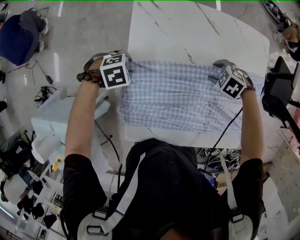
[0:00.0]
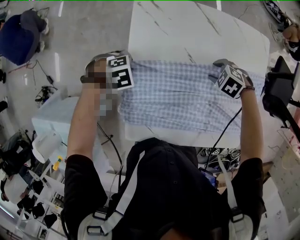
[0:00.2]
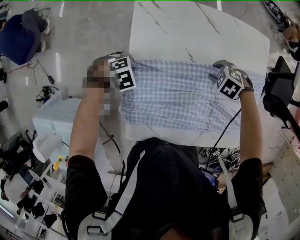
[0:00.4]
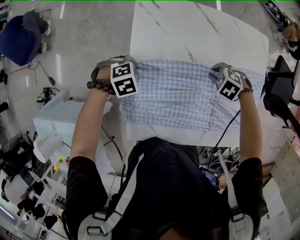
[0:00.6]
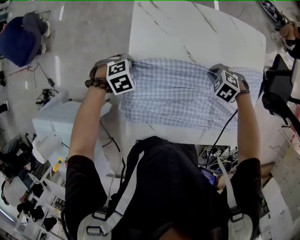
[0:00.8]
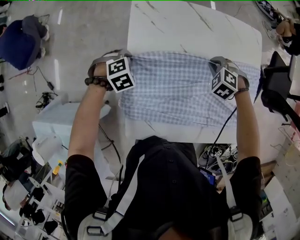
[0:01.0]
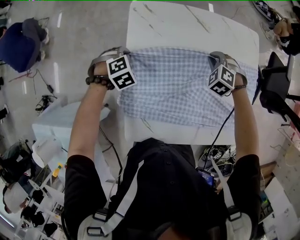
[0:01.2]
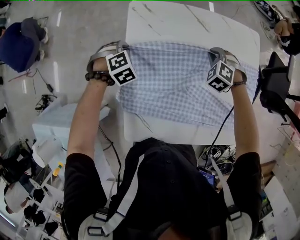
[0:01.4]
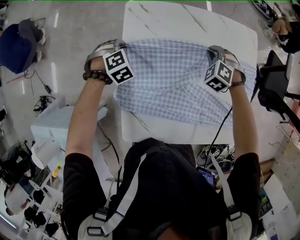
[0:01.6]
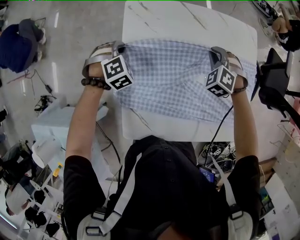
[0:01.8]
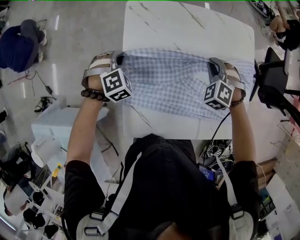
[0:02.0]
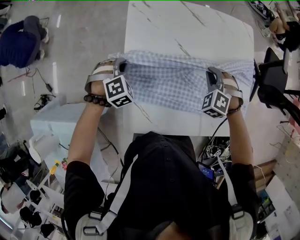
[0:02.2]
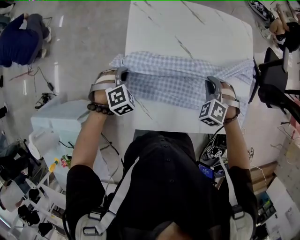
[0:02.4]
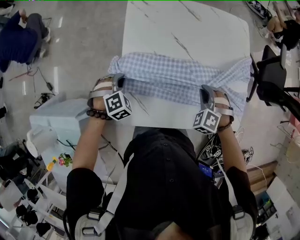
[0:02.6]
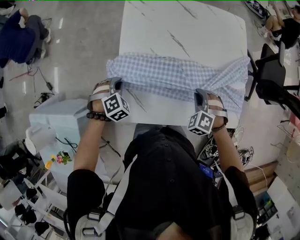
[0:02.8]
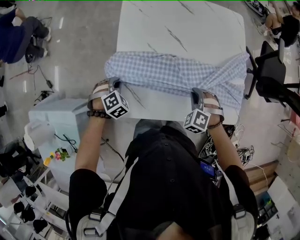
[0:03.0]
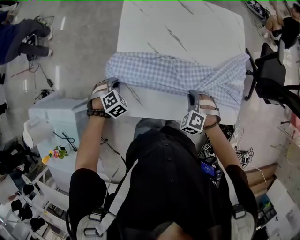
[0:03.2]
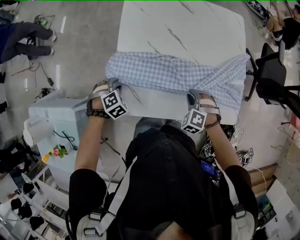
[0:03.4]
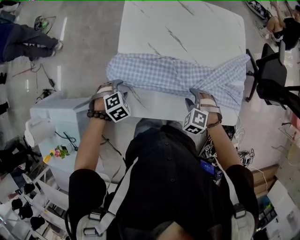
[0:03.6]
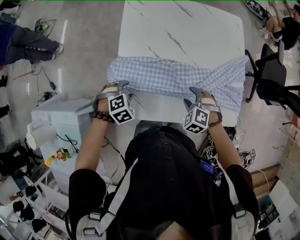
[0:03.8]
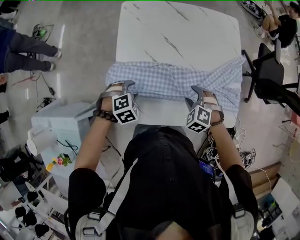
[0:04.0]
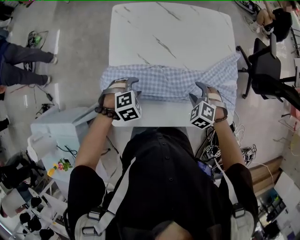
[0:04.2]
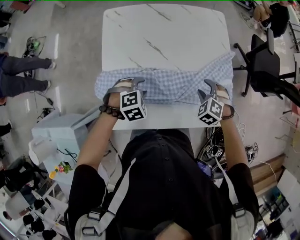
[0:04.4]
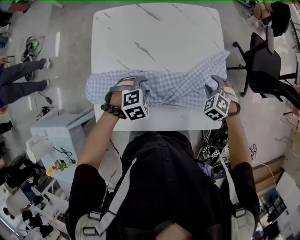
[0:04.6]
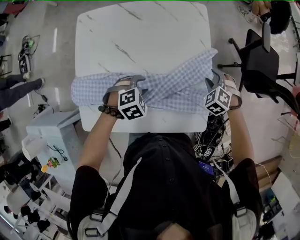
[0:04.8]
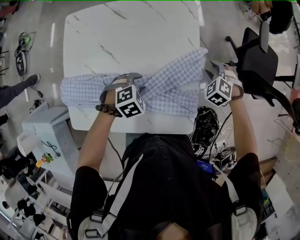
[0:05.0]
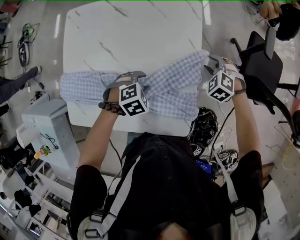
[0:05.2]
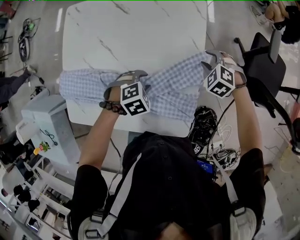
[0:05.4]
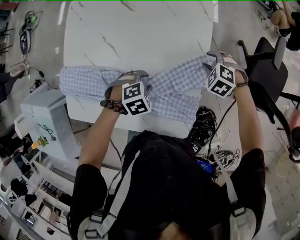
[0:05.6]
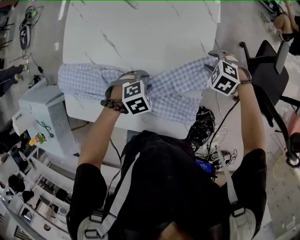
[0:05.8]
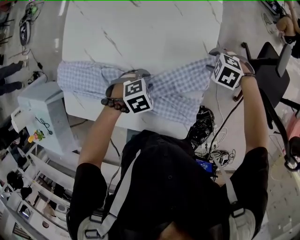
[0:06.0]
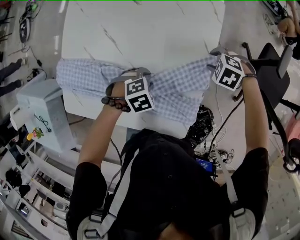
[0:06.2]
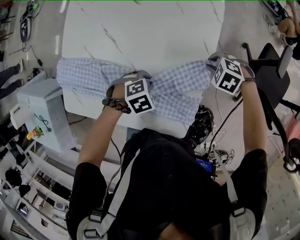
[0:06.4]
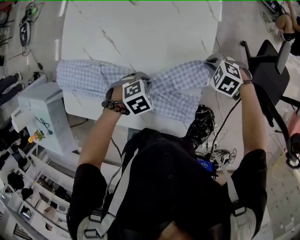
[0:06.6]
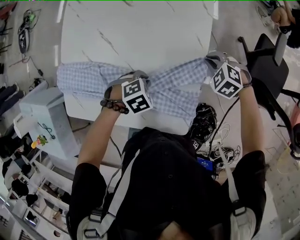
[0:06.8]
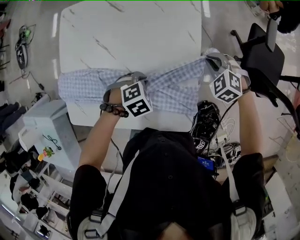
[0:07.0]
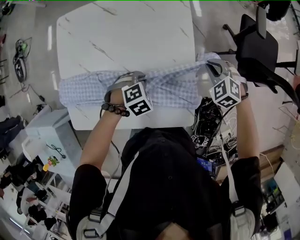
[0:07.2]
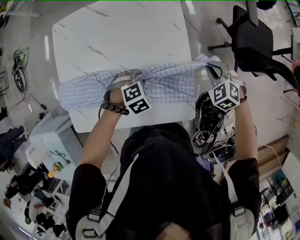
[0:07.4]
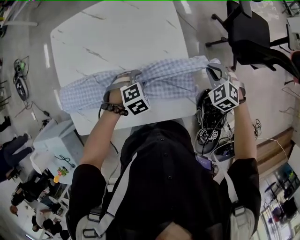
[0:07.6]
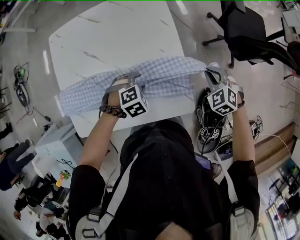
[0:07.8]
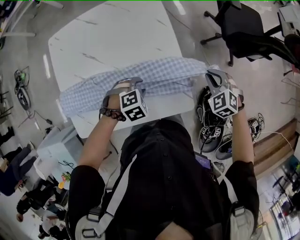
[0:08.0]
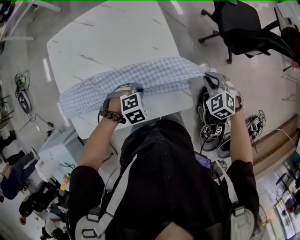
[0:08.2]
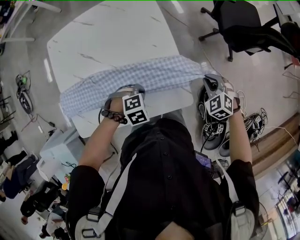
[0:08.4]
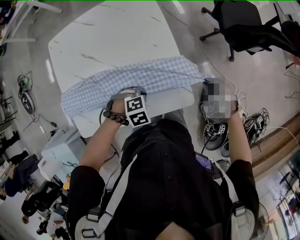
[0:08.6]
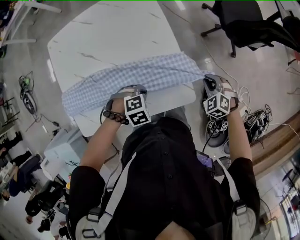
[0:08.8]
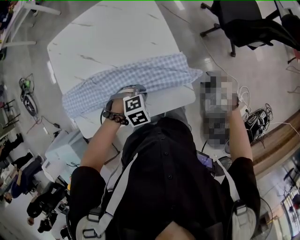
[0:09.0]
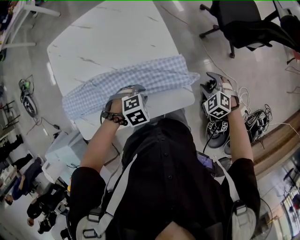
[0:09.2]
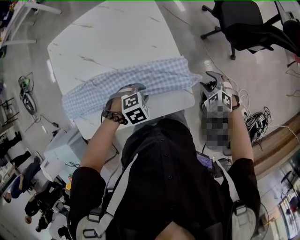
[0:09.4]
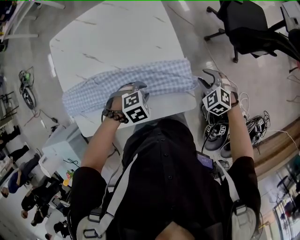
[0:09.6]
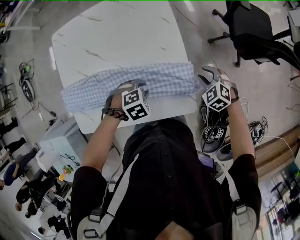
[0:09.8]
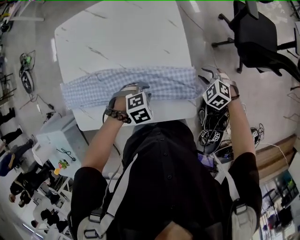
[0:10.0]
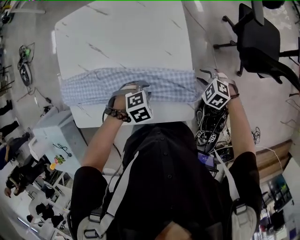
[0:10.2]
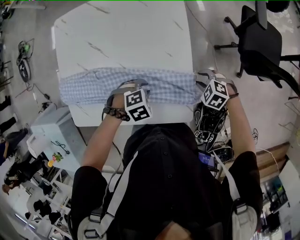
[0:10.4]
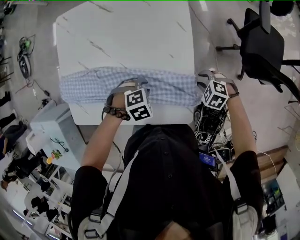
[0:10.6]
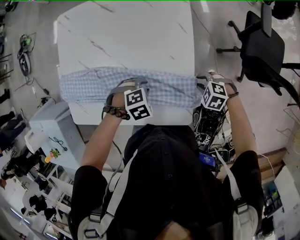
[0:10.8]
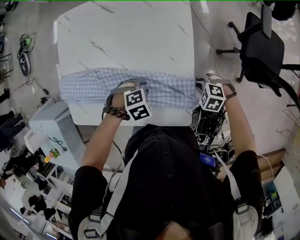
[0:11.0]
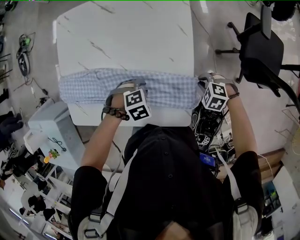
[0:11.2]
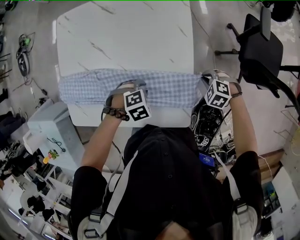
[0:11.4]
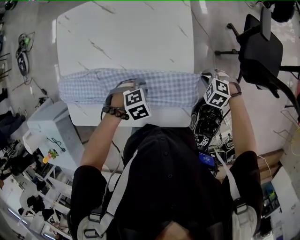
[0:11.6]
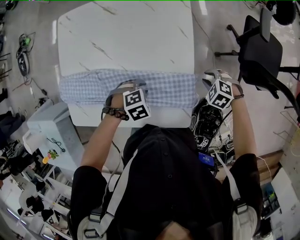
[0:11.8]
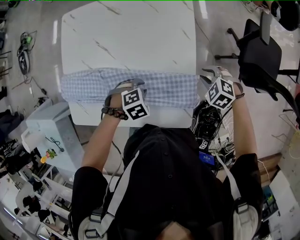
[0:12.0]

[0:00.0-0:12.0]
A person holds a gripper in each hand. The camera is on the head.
0:00.0 to 0:01.6: The left gripper changes place by some 10 cm, and swivels roughly 30 degrees, while the right gripper shifts by approximately 10 cm, turns by roughly 40 degrees, and closes.
0:01.6 to 0:03.0: The two grippers go approximately 30 cm backward.
0:03.0 to 0:04.4: The left gripper shifts by some 20 cm, and turns by roughly 20 degrees. The right gripper shifts by approximately 15 cm, and opens its fingers.
0:04.4 to 0:06.0: The left gripper moves roughly 25 cm, and changes its angle by approximately 30 degrees. Meanwhile the right gripper ends up about 25 cm from where it was, and rotates roughly 40 degrees.
0:06.0 to 0:07.6: The right gripper ends up roughly 20 cm from where it was, swivels approximately 50 degrees, and closes. Meanwhile the left gripper shifts by approximately 5 cm, and rotates roughly 20 degrees.
0:07.6 to 0:09.0: The right gripper changes place by approximately 15 cm, and opens its fingers. The left gripper moves about 10 cm.
0:09.0 to 0:10.4: The left gripper moves approximately 5 cm. The right gripper ends up some 15 cm from where it was, and turns by about 30 degrees.
0:10.4 to 0:12.0: The right gripper shifts by roughly 10 cm.

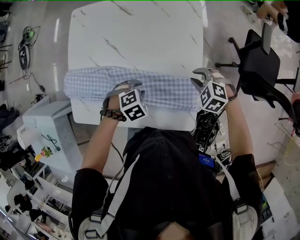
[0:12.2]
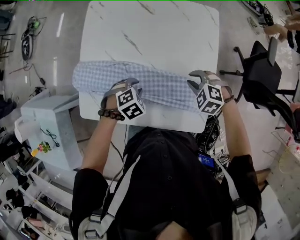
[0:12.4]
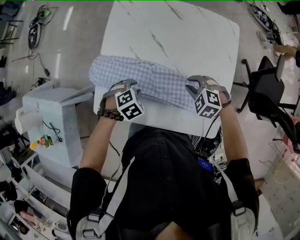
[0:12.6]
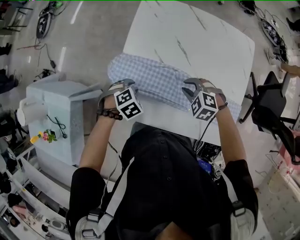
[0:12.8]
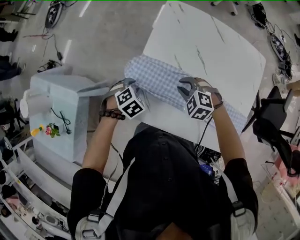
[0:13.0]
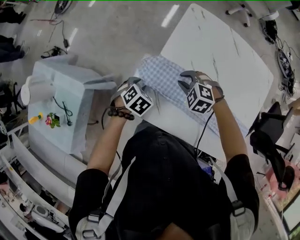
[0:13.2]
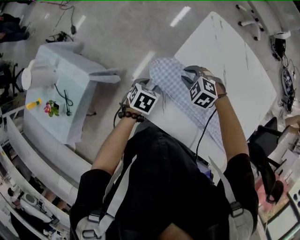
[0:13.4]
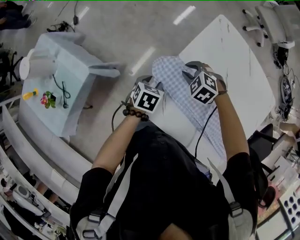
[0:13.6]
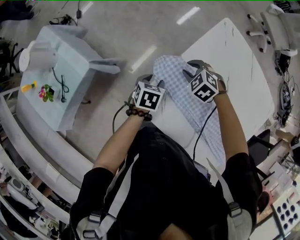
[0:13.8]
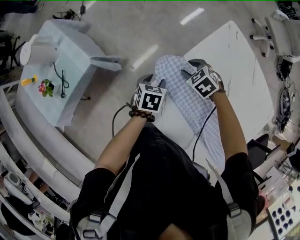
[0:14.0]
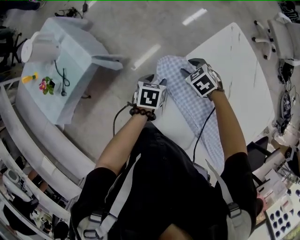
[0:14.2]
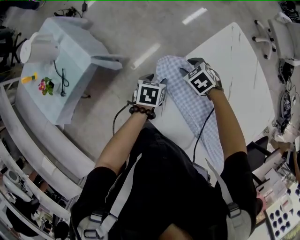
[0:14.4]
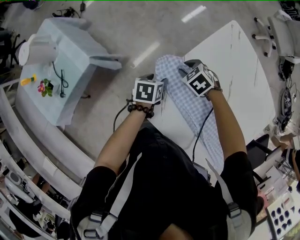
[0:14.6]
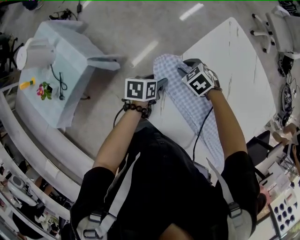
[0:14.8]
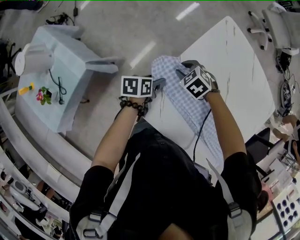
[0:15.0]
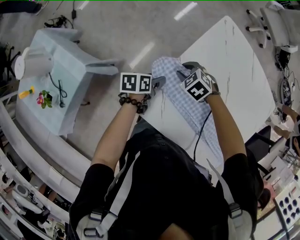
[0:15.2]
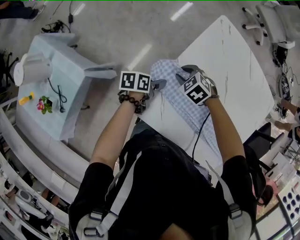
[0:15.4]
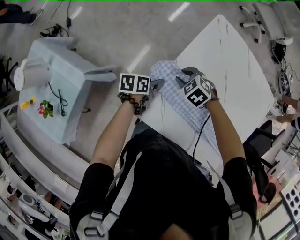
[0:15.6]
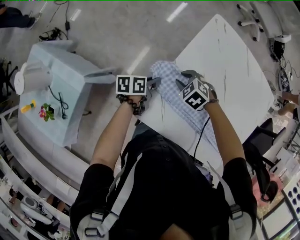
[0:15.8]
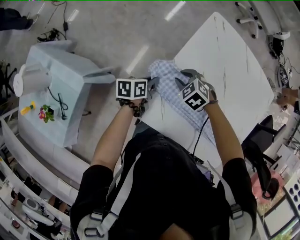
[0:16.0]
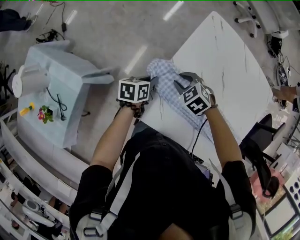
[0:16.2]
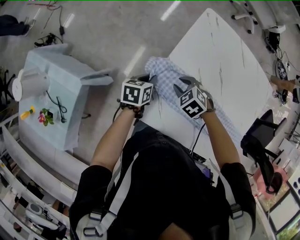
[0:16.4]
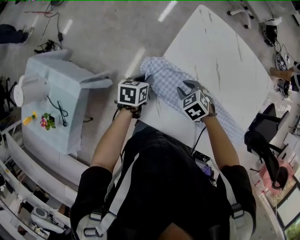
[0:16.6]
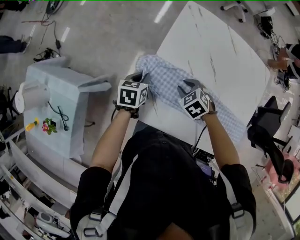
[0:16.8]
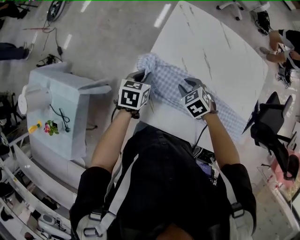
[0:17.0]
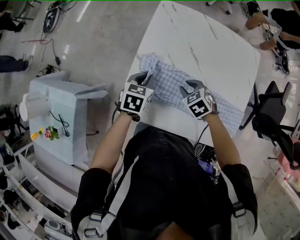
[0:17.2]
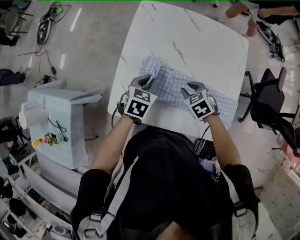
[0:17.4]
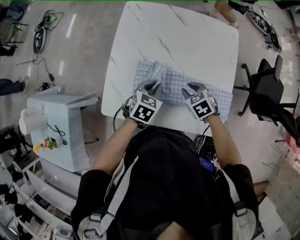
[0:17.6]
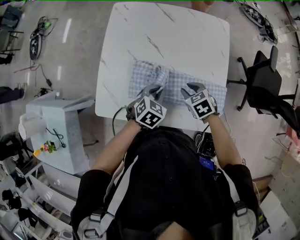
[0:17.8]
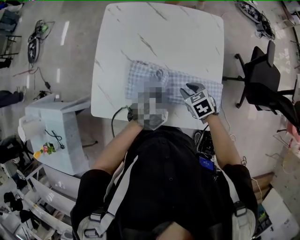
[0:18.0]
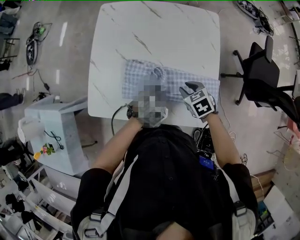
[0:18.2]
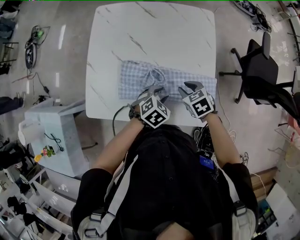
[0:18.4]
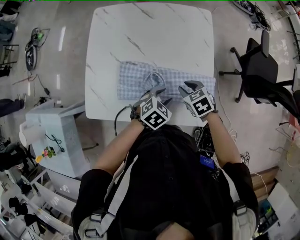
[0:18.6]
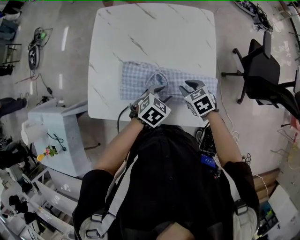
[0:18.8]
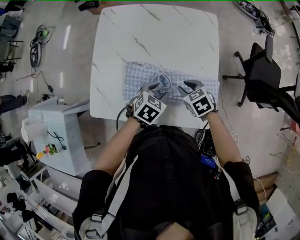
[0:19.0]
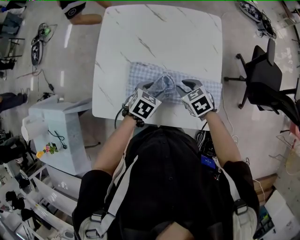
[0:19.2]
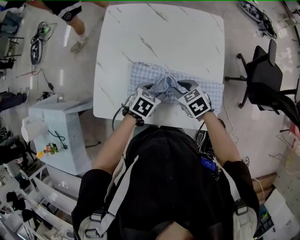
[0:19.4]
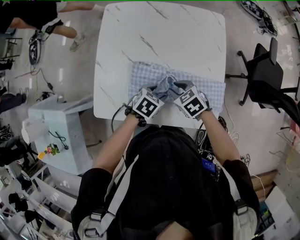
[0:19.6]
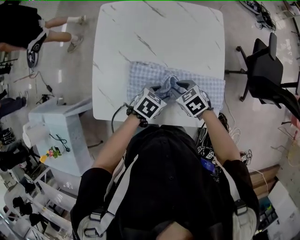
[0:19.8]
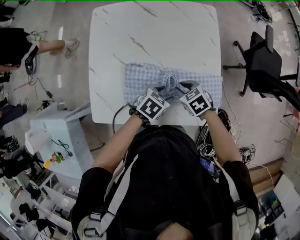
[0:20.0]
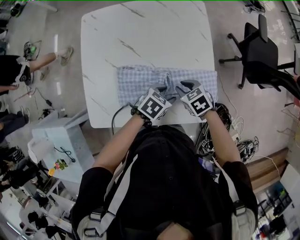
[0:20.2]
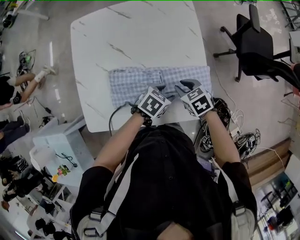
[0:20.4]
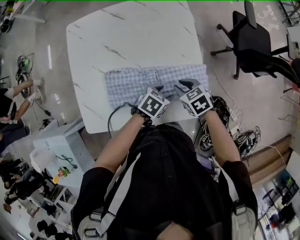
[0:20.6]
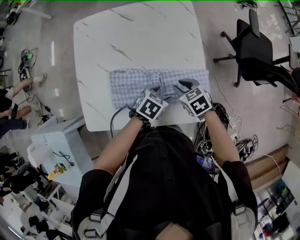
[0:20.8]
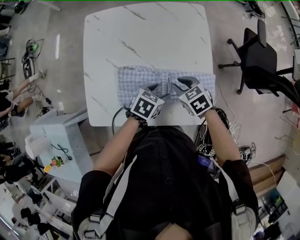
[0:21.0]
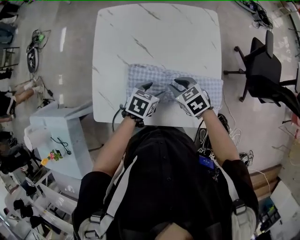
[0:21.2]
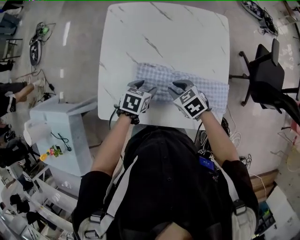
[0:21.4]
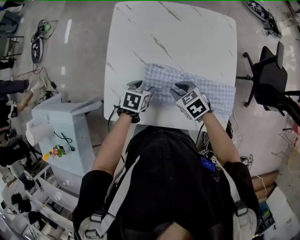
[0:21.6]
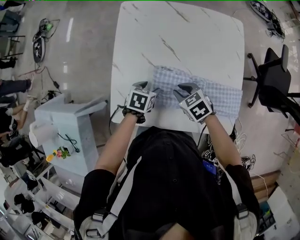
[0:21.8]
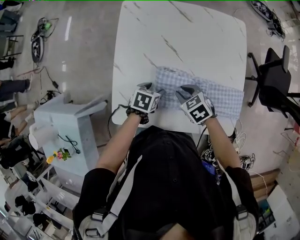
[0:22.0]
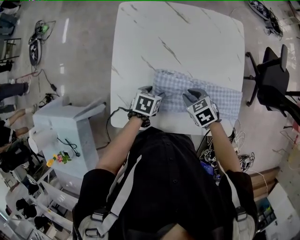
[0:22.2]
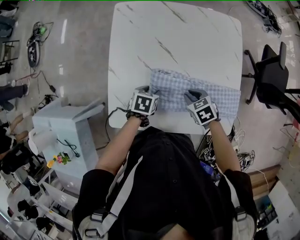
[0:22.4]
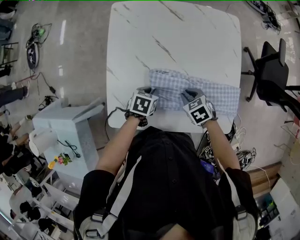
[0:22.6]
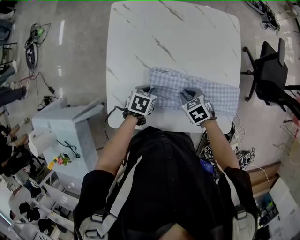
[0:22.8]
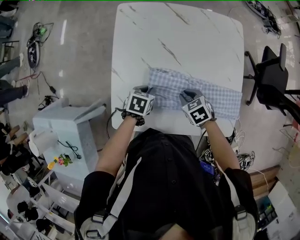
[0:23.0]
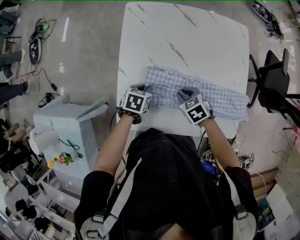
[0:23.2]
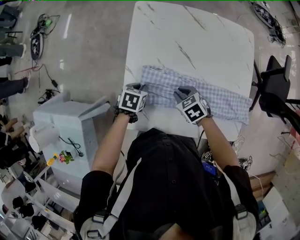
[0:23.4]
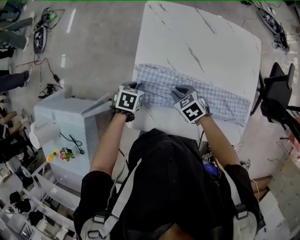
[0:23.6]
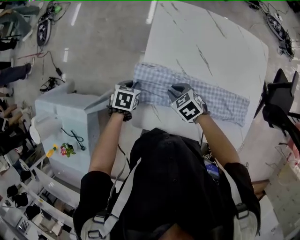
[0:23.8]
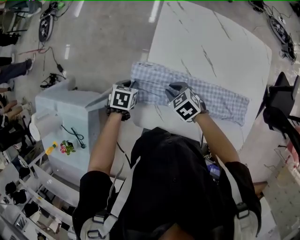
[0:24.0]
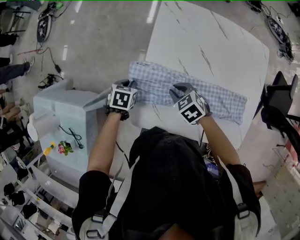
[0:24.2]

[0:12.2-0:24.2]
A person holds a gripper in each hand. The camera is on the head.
0:12.2 to 0:13.8: The two grippers travel together, some 50 cm. The right gripper swivels approximately 30 degrees. The left gripper twists approximately 90 degrees counterclockwise, seen from behind.
0:13.8 to 0:15.2: The left gripper rotates approximately 30 degrees.
0:15.2 to 0:16.6: The right gripper ends up some 10 cm from where it was, while the left gripper rotates roughly 30 degrees, and closes its fingers.
0:16.6 to 0:18.2: Both grippers travel together to the right and backward, approximately 40 cm. The right gripper changes its angle by some 30 degrees. Meanwhile the left gripper twists roughly 60 degrees clockwise, seen from behind.
0:18.2 to 0:19.8: The right gripper moves about 5 cm.
0:21.2 to 0:22.6: The right gripper travels downward and to the left by roughly 10 cm, while the left gripper heads to the left and downward, covering roughly 15 cm, and closes its fingers.
0:22.6 to 0:24.2: The left gripper changes place by approximately 30 cm, while the right gripper changes place by approximately 25 cm.
